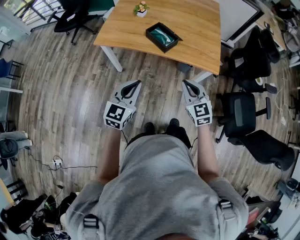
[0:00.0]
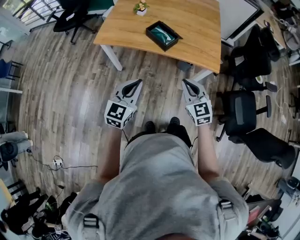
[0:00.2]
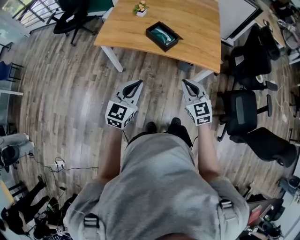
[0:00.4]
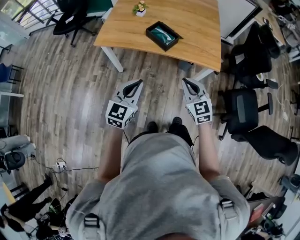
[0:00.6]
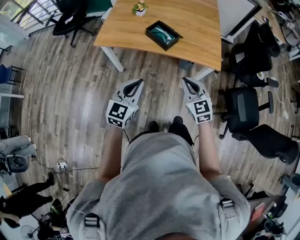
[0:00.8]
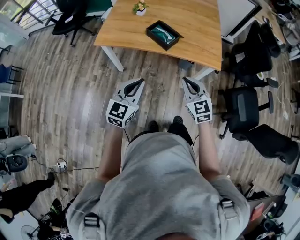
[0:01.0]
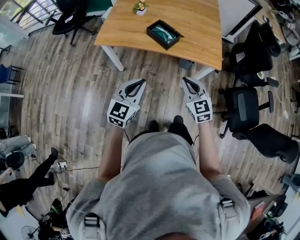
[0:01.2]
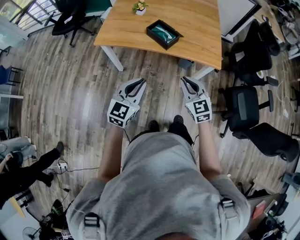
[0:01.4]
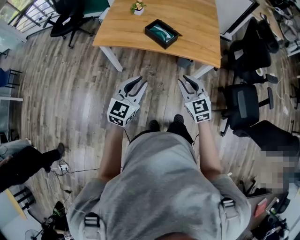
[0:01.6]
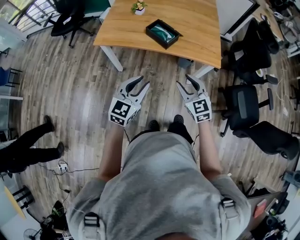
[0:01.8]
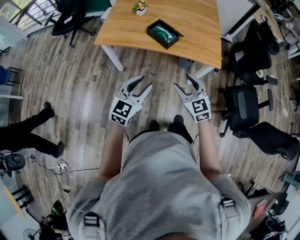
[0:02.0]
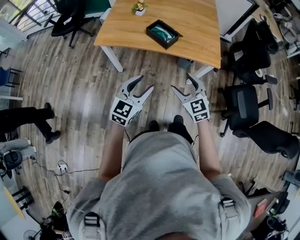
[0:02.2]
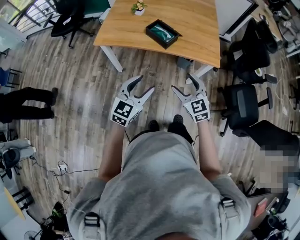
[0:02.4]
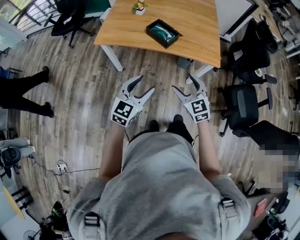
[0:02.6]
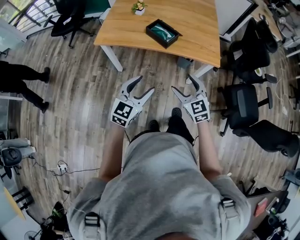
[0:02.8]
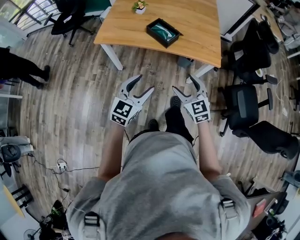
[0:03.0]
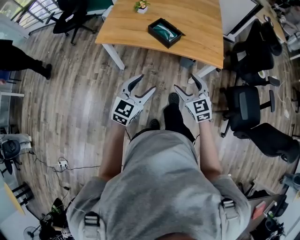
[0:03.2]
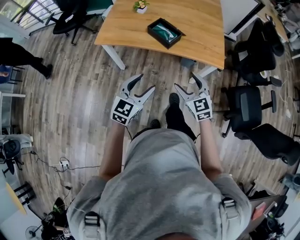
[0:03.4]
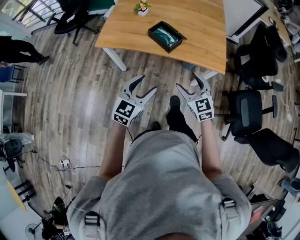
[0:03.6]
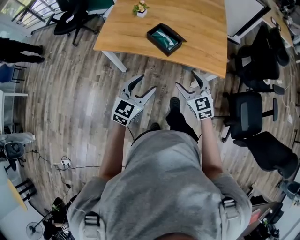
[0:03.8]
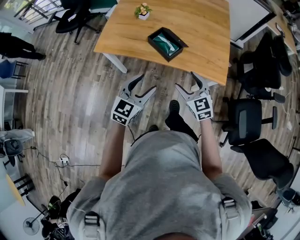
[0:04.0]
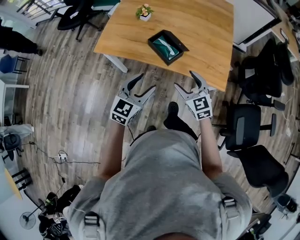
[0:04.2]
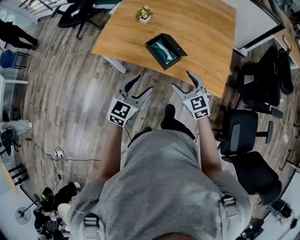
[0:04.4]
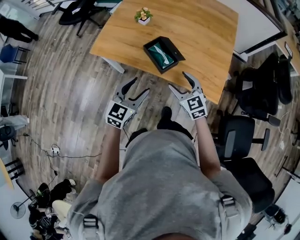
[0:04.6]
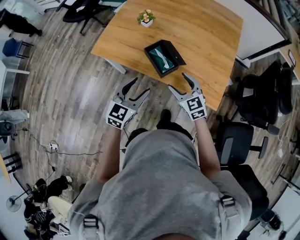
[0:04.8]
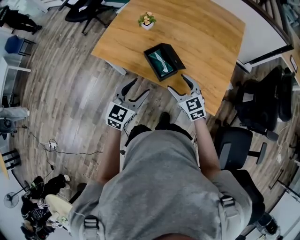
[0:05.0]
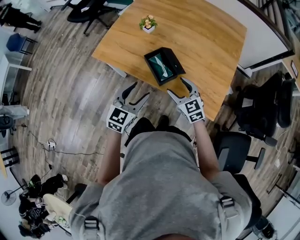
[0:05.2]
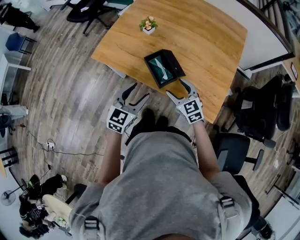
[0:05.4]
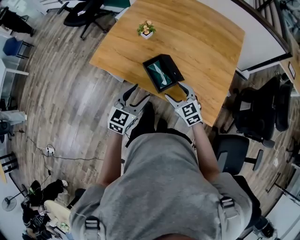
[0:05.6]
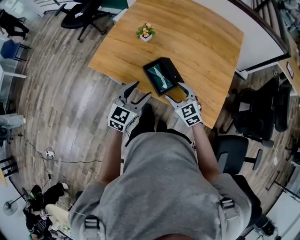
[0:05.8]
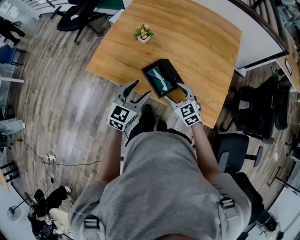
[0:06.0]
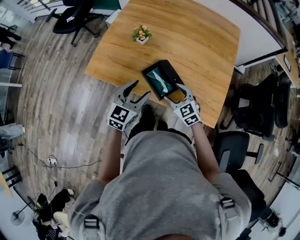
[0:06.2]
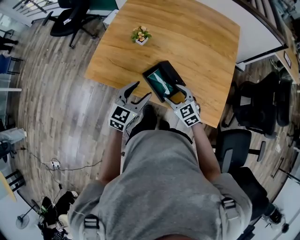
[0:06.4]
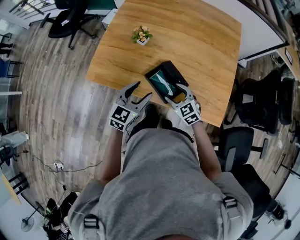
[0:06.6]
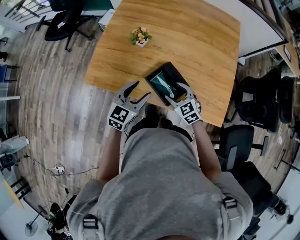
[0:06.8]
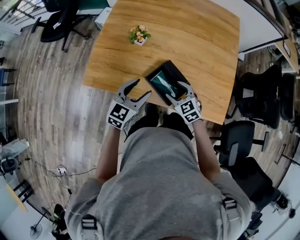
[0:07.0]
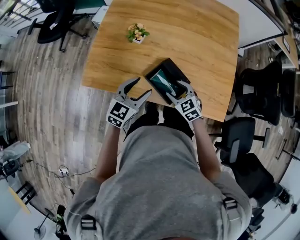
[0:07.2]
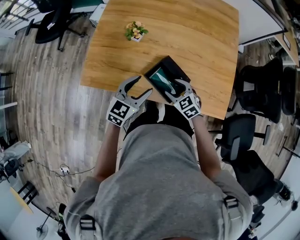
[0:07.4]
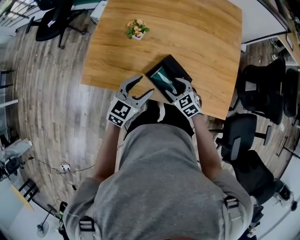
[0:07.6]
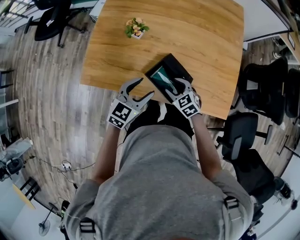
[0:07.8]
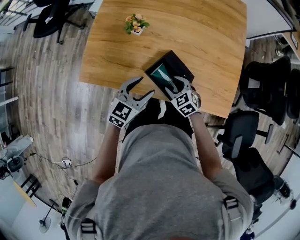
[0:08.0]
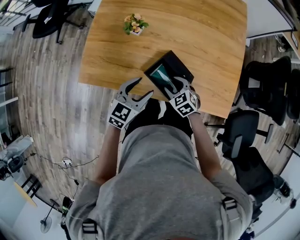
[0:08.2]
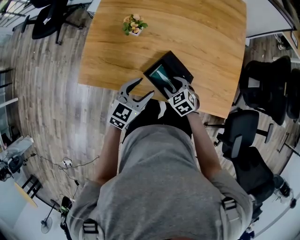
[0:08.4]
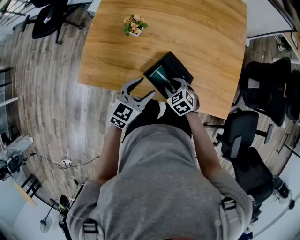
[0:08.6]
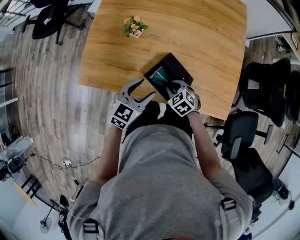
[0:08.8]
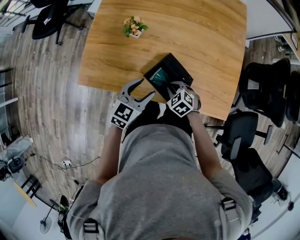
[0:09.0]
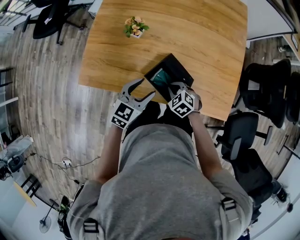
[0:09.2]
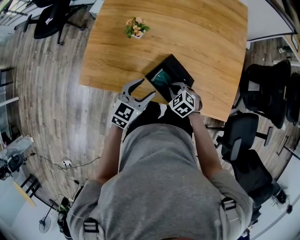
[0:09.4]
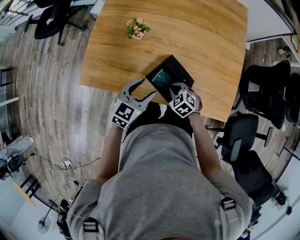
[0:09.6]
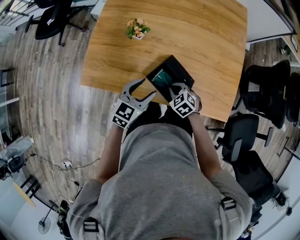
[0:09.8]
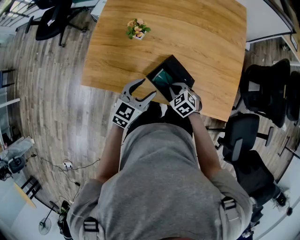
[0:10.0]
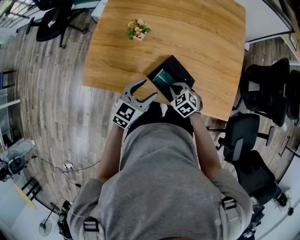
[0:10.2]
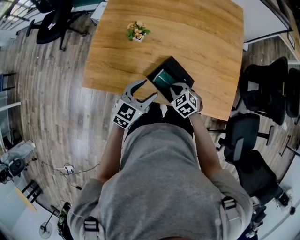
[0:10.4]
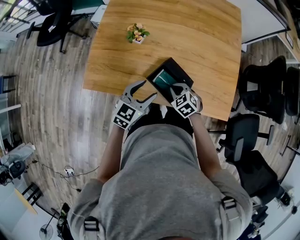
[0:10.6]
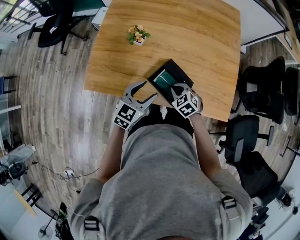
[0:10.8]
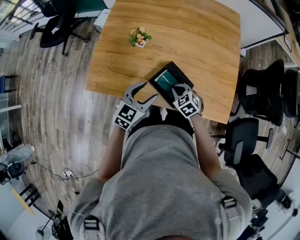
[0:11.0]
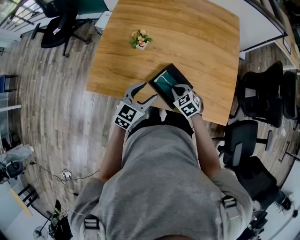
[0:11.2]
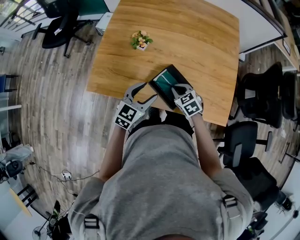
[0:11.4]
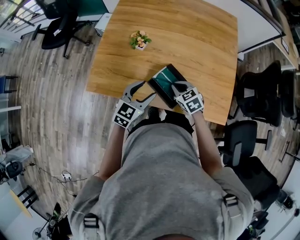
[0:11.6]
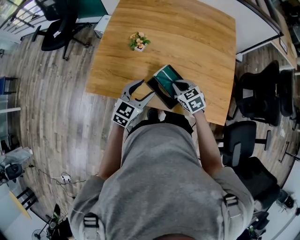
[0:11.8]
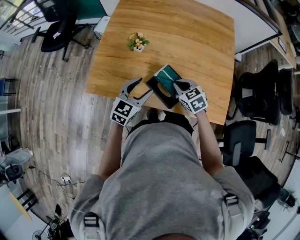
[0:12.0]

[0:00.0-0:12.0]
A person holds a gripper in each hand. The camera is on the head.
0:00.0 to 0:01.6: There are only small adjustments of the grippers.
0:01.6 to 0:03.0: The left gripper opens up; the right gripper opens.
0:03.0 to 0:04.4: Both grippers move forward, some 20 cm.
0:04.4 to 0:06.0: The left gripper is displaced forward by approximately 15 cm. The right gripper travels forward and downward by some 15 cm.
0:06.0 to 0:07.6: The left gripper moves forward and downward, some 10 cm, while the right gripper travels downward and forward by roughly 10 cm.
0:07.6 to 0:09.0: The right gripper closes its fingers.
0:09.0 to 0:10.4: The grippers make only small movements.
0:10.4 to 0:12.0: The right gripper moves upward, about 10 cm.

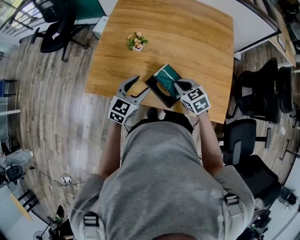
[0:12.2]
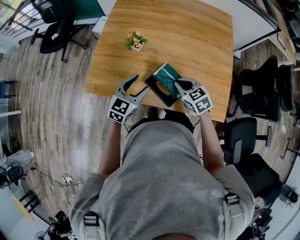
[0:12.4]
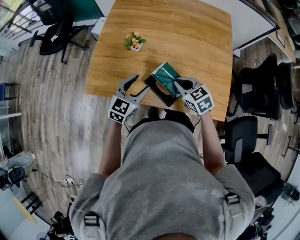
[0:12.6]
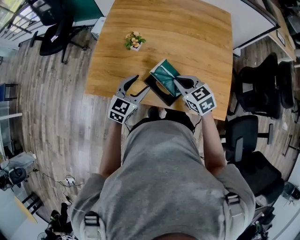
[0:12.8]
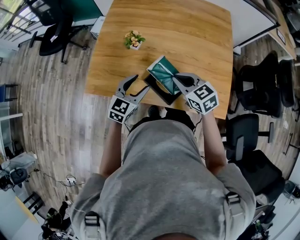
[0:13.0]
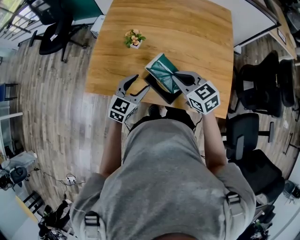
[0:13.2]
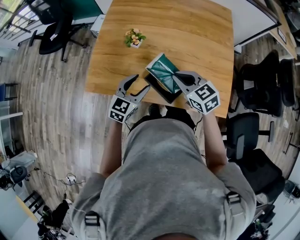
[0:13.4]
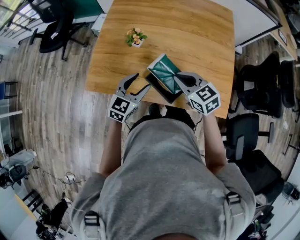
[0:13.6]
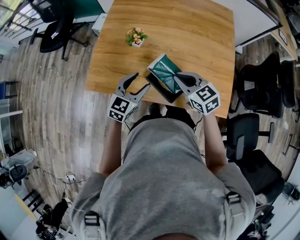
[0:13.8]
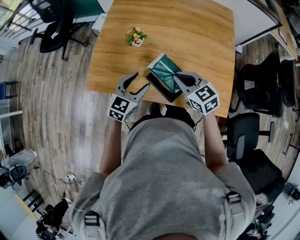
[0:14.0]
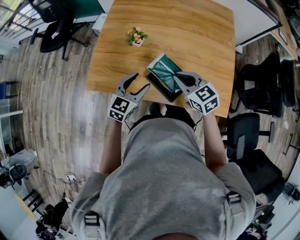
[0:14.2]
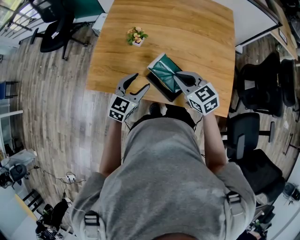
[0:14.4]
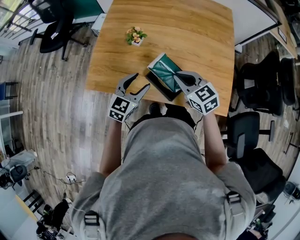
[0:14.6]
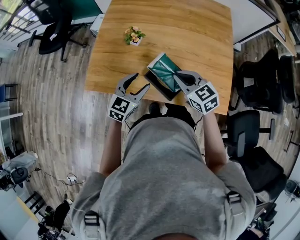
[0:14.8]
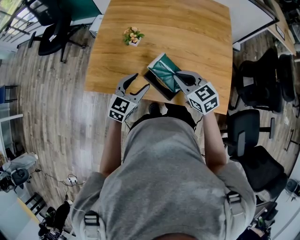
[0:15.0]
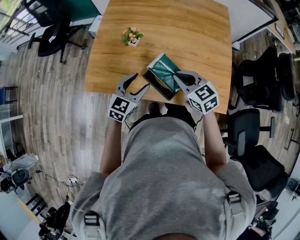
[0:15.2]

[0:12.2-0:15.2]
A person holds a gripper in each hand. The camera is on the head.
0:12.2 to 0:13.8: The right gripper goes approximately 5 cm upward.
0:13.8 to 0:15.2: The grippers stay close to where they were, moving slightly.

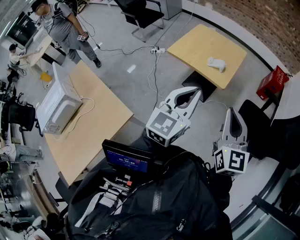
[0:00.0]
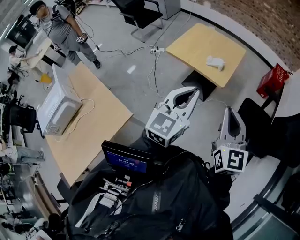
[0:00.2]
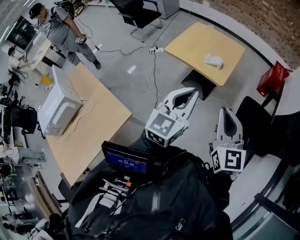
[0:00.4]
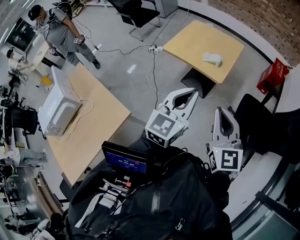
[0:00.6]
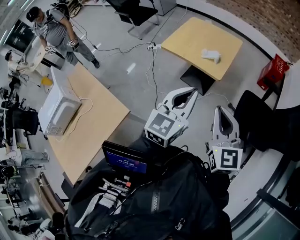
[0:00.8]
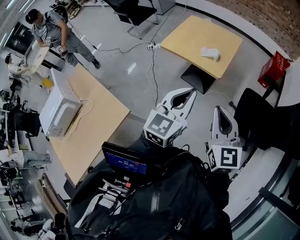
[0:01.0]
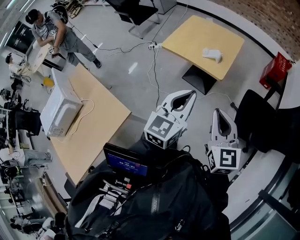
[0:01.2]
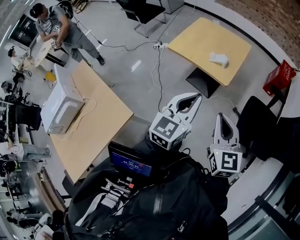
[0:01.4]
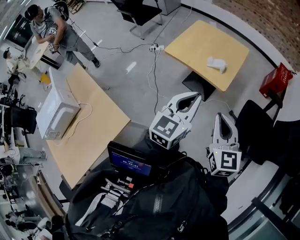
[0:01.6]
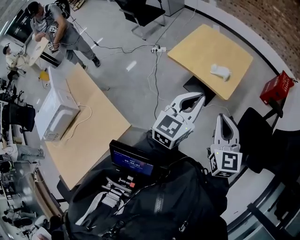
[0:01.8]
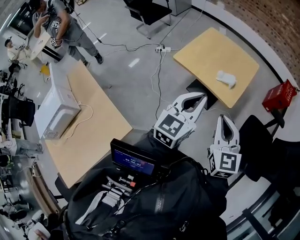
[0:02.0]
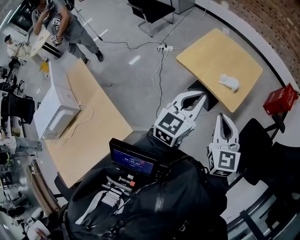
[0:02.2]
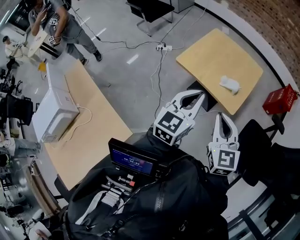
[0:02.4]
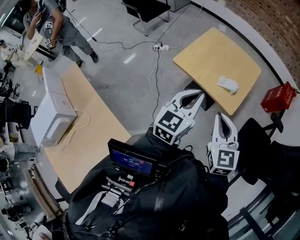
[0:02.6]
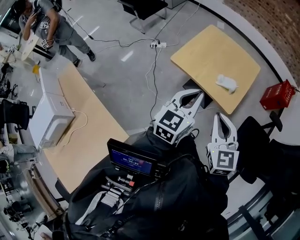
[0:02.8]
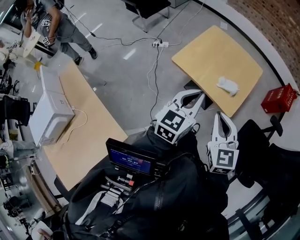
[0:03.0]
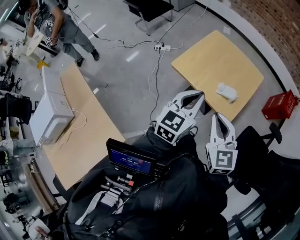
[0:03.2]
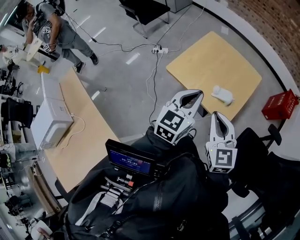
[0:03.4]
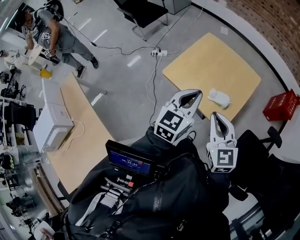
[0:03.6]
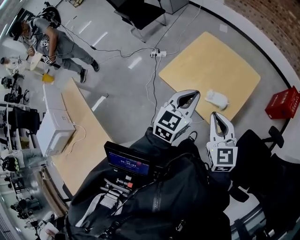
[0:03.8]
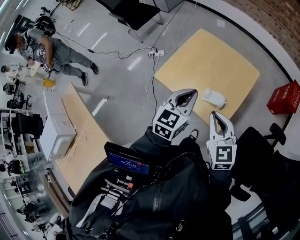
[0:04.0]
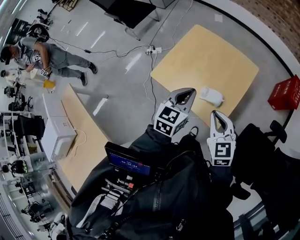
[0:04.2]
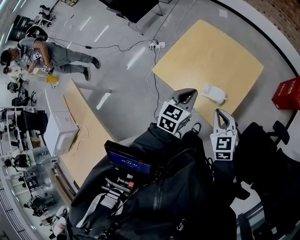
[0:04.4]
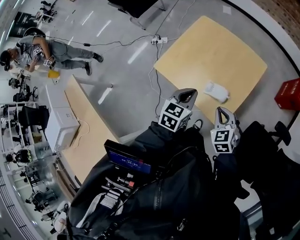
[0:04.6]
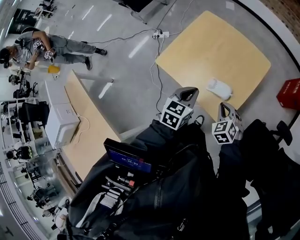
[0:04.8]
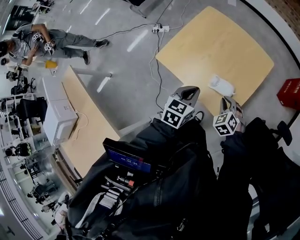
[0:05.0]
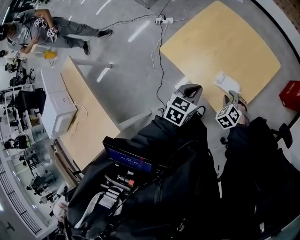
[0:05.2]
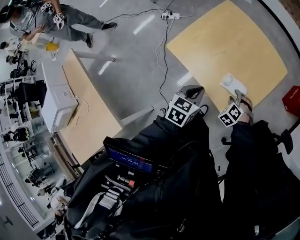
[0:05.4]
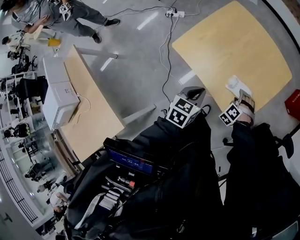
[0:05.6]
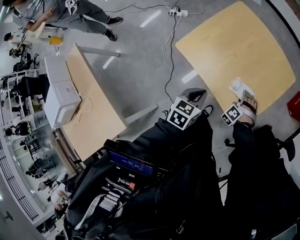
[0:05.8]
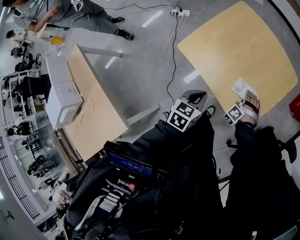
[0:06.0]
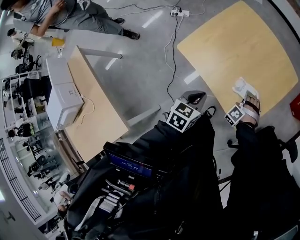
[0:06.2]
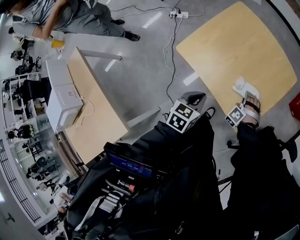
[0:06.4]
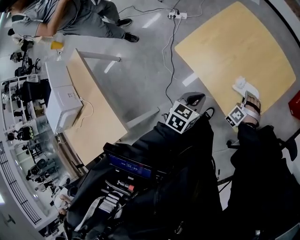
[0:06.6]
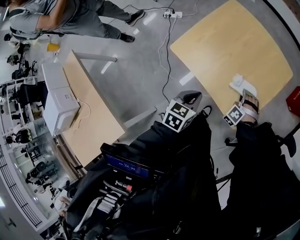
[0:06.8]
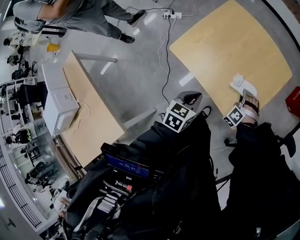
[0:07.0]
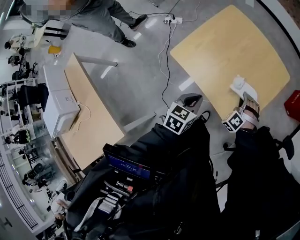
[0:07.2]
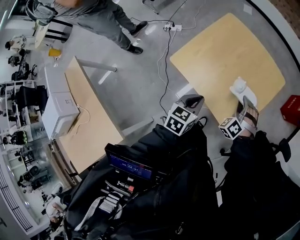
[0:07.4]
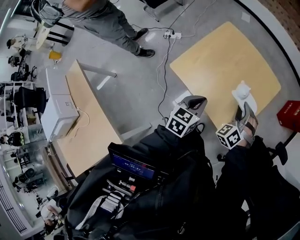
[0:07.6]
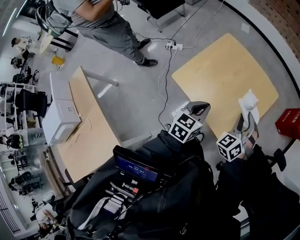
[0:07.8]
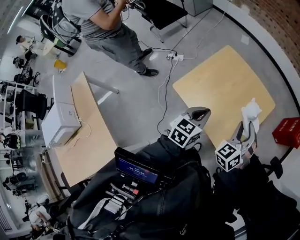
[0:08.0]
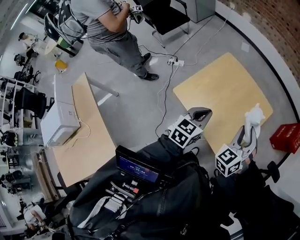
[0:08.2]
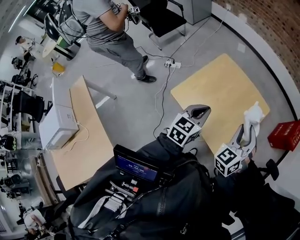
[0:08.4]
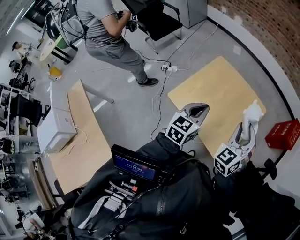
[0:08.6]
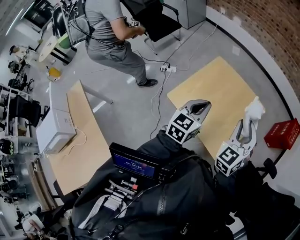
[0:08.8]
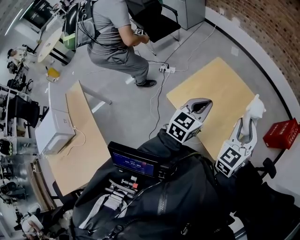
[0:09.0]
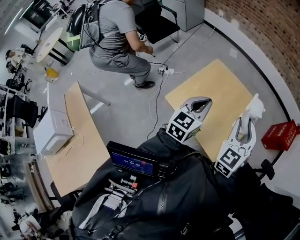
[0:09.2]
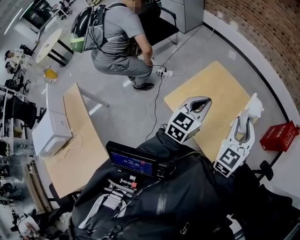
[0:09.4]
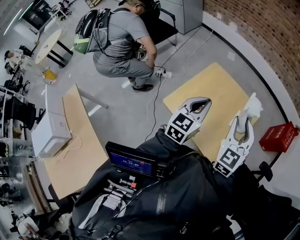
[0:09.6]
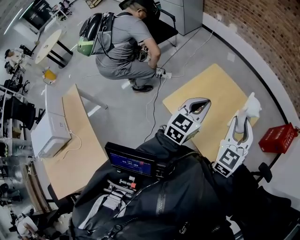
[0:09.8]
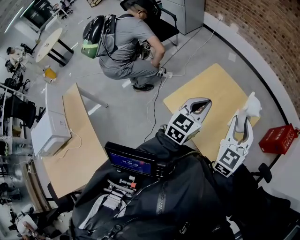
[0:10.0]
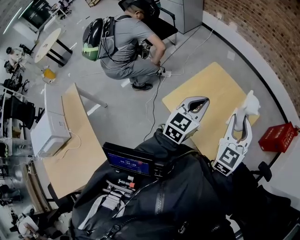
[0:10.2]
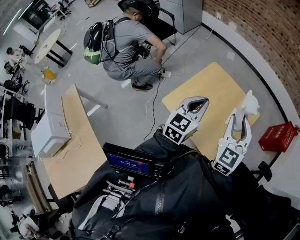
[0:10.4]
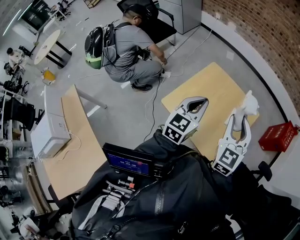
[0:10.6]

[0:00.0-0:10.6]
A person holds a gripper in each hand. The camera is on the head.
0:00.0 to 0:01.6: The left gripper travels forward and downward by roughly 10 cm. Meanwhile the right gripper goes some 5 cm downward.
0:01.6 to 0:03.0: The two grippers go some 20 cm forward and to the left.
0:03.0 to 0:04.6: The left gripper heads forward, downward and to the right, covering about 25 cm, and swivels approximately 20 degrees. The right gripper shifts some 30 cm downward, forward and to the right, and swivels some 20 degrees.
0:04.6 to 0:06.0: The left gripper goes some 10 cm downward. The right gripper moves downward, about 20 cm, rotates around the line of its fingers by about 60 degrees, counterclockwise from behind, and opens up.
0:06.0 to 0:07.6: The left gripper is displaced upward by about 10 cm, while the right gripper travels upward by roughly 25 cm, changes its angle by approximately 40 degrees, and closes up.
0:07.6 to 0:09.0: Both grippers travel together upward, roughly 20 cm. The left gripper rotates approximately 20 degrees. Meanwhile the right gripper turns by some 40 degrees.
0:09.0 to 0:10.6: The grippers stay close to where they were, moving slightly.
